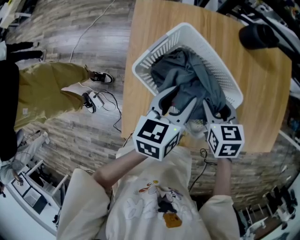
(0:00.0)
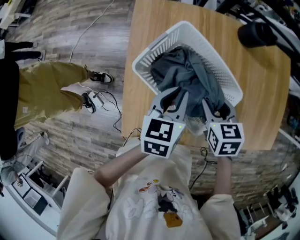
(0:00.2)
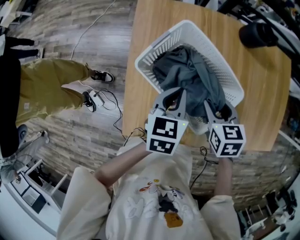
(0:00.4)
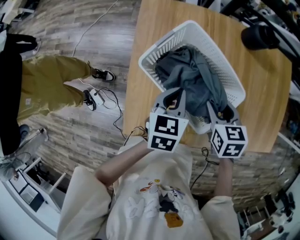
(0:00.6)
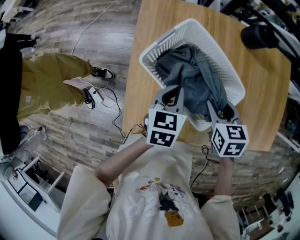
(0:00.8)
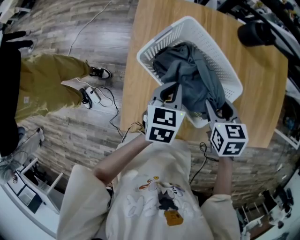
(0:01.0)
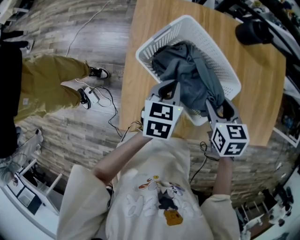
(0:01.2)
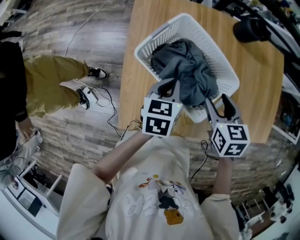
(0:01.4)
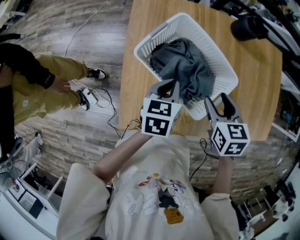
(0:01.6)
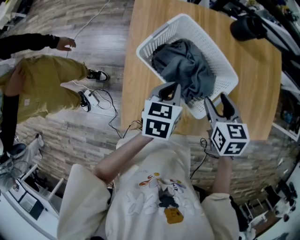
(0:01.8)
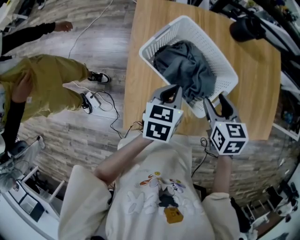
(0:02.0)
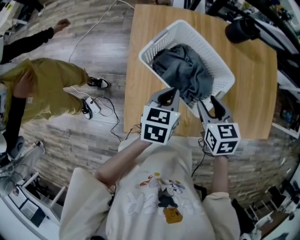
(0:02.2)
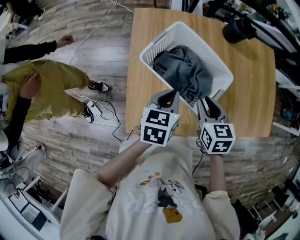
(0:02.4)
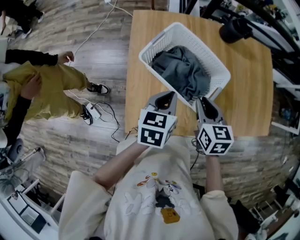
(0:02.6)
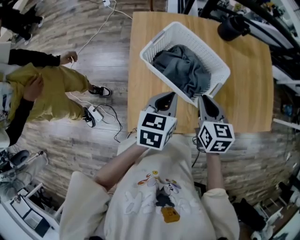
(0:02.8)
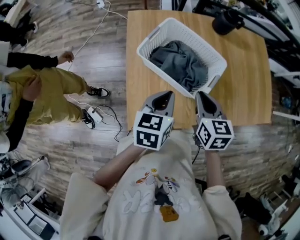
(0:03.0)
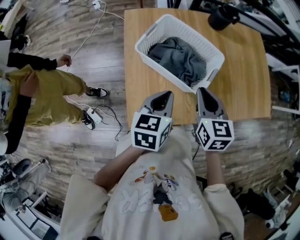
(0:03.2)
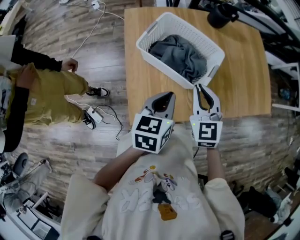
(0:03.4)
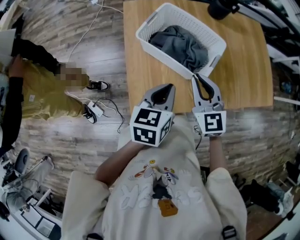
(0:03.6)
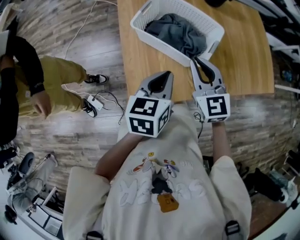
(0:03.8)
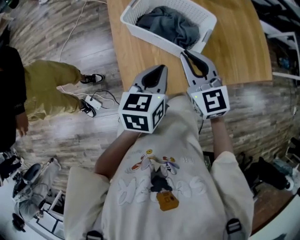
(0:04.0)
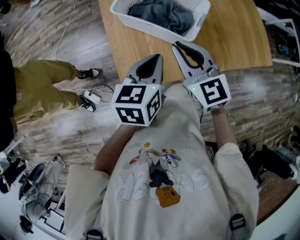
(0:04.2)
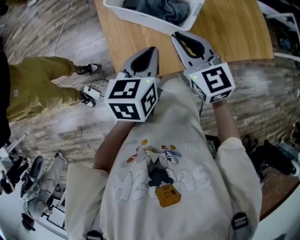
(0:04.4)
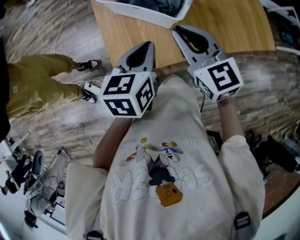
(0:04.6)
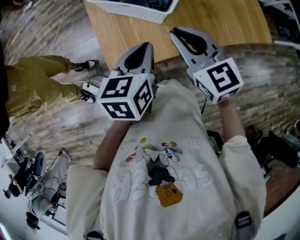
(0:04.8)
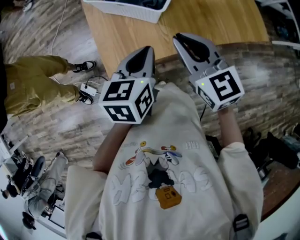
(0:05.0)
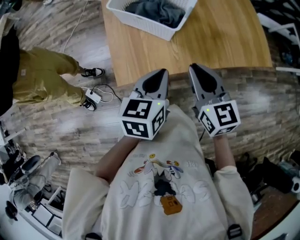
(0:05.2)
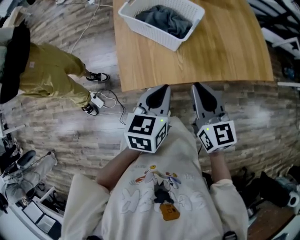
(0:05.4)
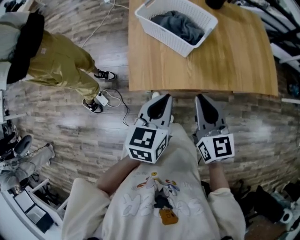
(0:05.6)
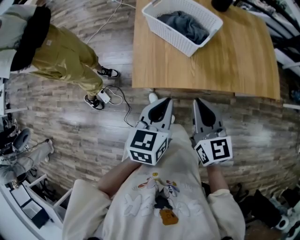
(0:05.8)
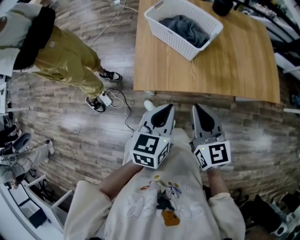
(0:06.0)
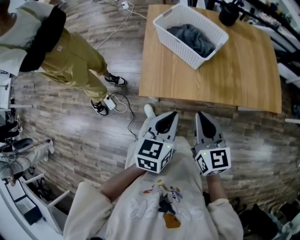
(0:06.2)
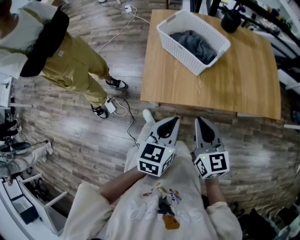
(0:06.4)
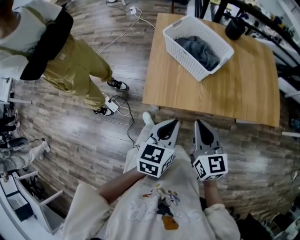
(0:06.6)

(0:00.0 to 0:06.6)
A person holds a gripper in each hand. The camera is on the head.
0:00.0 - 0:01.6: The left gripper travels downward by roughly 5 cm, and closes up. The right gripper shifts by about 5 cm.
0:01.6 - 0:03.2: The two grippers go about 15 cm backward and upward. The right gripper changes its angle by roughly 20 degrees, and closes its fingers.
0:03.2 - 0:05.0: The left gripper moves backward and to the right, about 15 cm. The right gripper goes roughly 15 cm backward, and swivels approximately 20 degrees.
0:05.0 - 0:06.6: Both grippers move backward, about 10 cm.

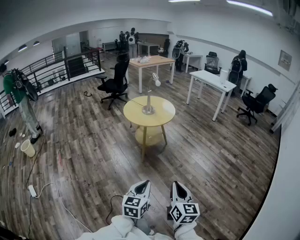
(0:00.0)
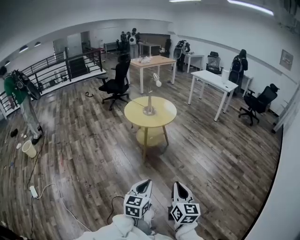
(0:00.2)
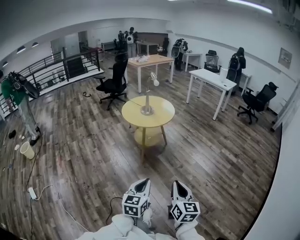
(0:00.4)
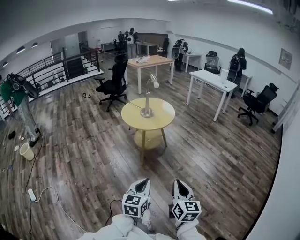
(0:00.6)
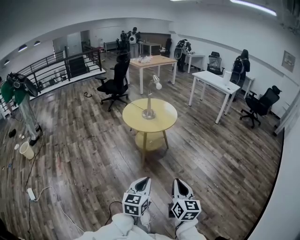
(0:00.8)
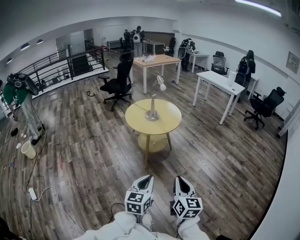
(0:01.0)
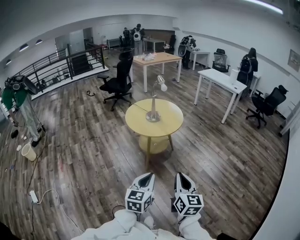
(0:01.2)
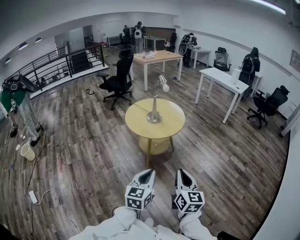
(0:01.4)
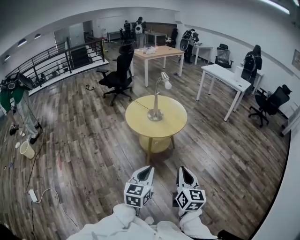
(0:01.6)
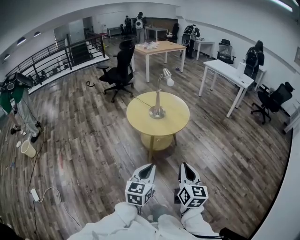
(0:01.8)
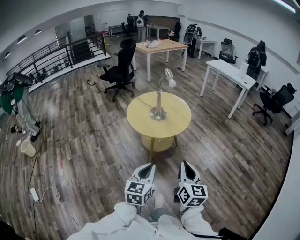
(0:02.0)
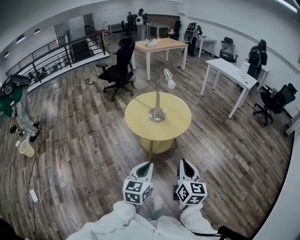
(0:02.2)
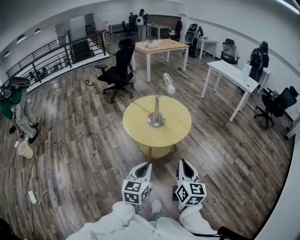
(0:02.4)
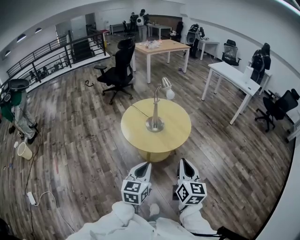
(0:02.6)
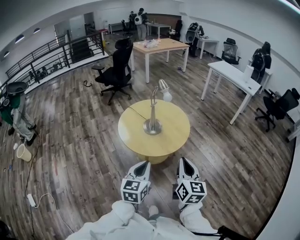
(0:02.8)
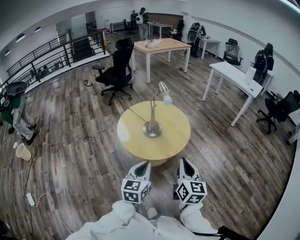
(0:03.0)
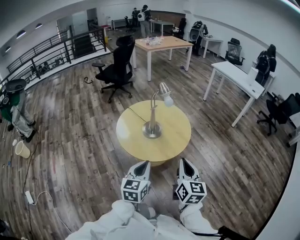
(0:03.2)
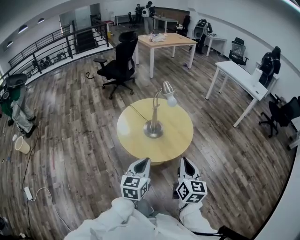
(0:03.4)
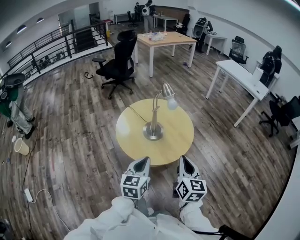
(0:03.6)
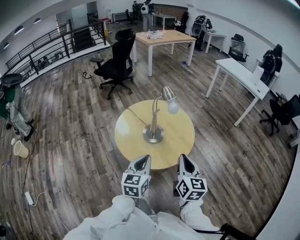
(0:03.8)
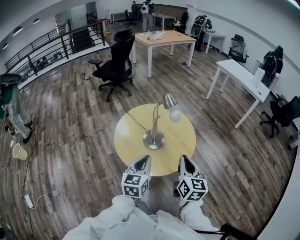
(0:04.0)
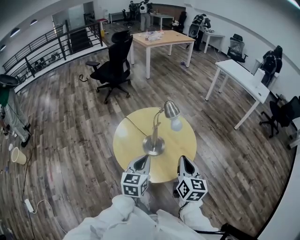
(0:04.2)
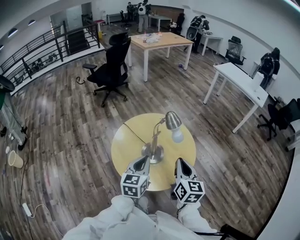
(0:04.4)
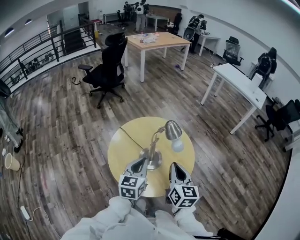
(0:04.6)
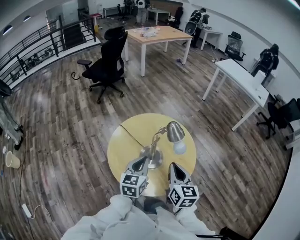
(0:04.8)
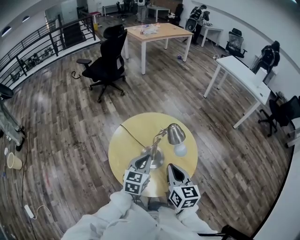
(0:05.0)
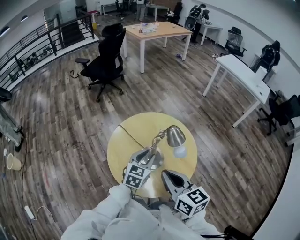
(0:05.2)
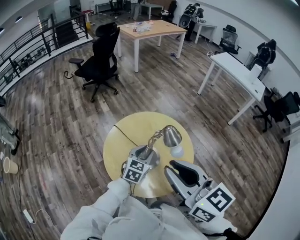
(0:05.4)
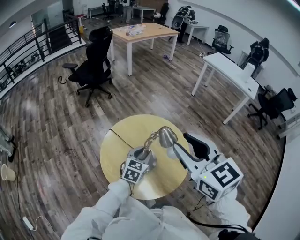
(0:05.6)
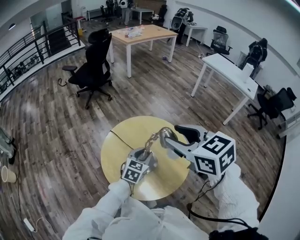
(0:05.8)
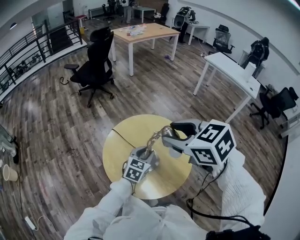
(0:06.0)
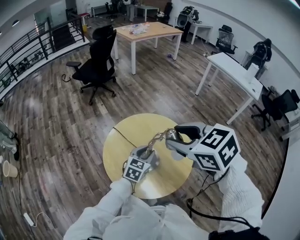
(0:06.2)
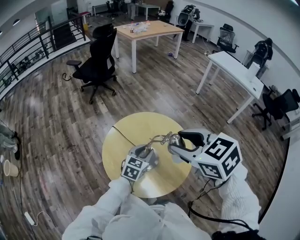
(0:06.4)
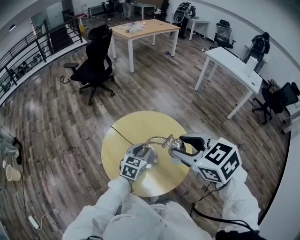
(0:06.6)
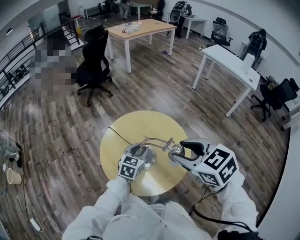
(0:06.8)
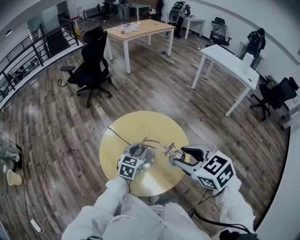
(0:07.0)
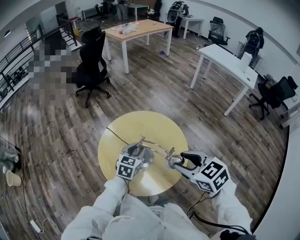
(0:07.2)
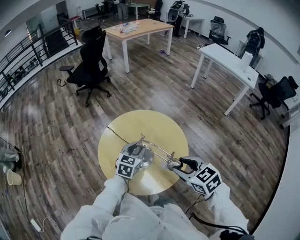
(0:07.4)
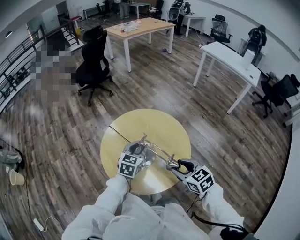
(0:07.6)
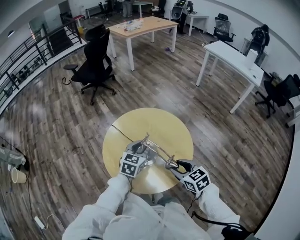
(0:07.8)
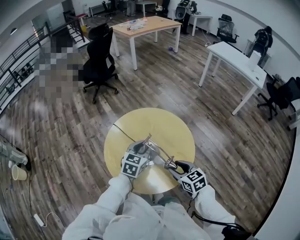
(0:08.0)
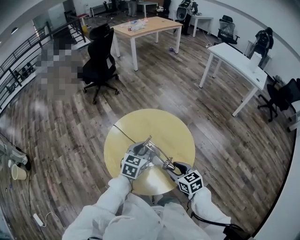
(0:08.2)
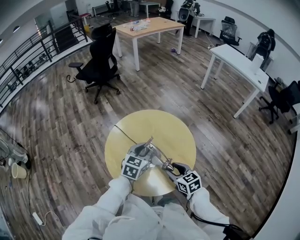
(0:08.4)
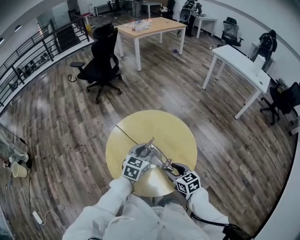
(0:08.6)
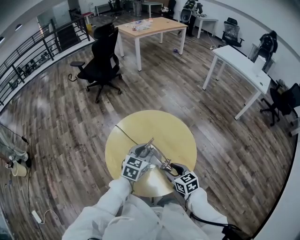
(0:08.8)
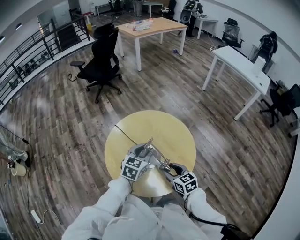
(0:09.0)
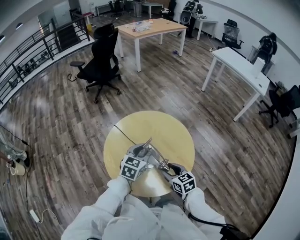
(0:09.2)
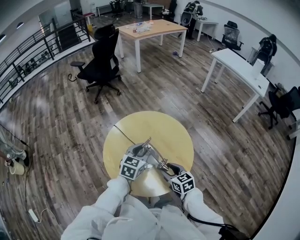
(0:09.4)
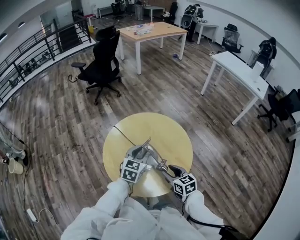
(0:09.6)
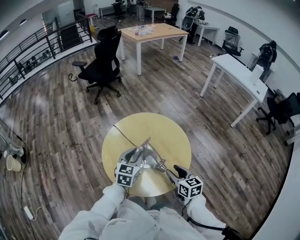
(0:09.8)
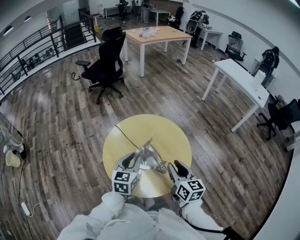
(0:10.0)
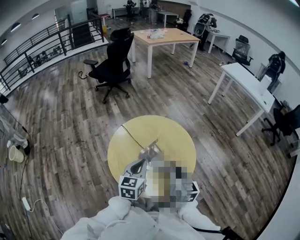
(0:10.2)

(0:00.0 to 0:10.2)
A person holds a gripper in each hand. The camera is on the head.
0:00.0 - 0:01.4: The grippers both shift forward by roughly 30 cm.
0:01.4 - 0:03.0: Both grippers move forward, approximately 35 cm.
0:03.0 - 0:04.4: The two grippers go about 25 cm forward.
0:04.4 - 0:05.8: The right gripper shifts about 20 cm upward, forward and to the left, swivels approximately 40 degrees, and opens its fingers; the left gripper shifts roughly 15 cm forward and downward, swivels about 20 degrees, and opens.
0:05.8 - 0:07.2: The right gripper travels downward, backward and to the right by approximately 20 cm.
0:07.2 - 0:08.8: The right gripper is displaced downward by approximately 20 cm.
0:08.8 - 0:10.2: The left gripper moves backward, about 10 cm, rotates some 20 degrees, and closes, while the right gripper travels upward by about 15 cm, rotates roughly 30 degrees, and closes.

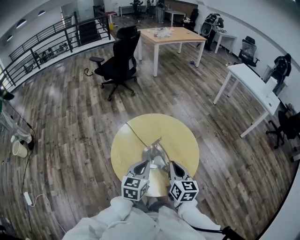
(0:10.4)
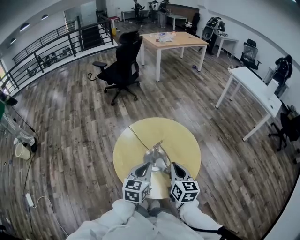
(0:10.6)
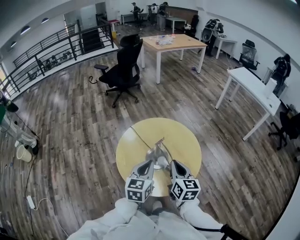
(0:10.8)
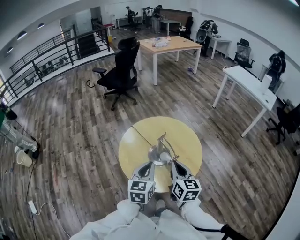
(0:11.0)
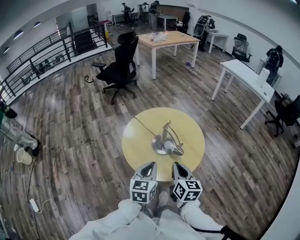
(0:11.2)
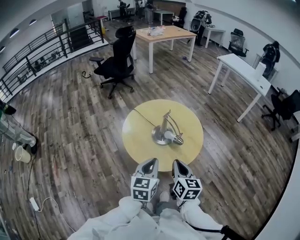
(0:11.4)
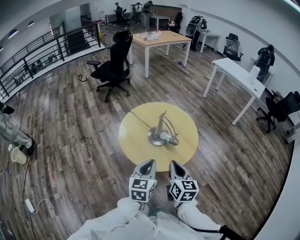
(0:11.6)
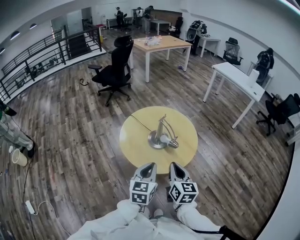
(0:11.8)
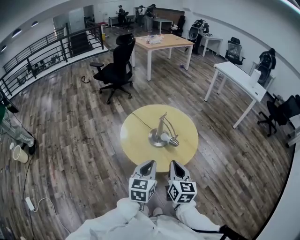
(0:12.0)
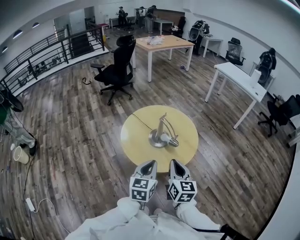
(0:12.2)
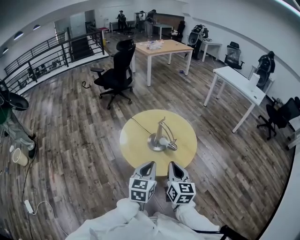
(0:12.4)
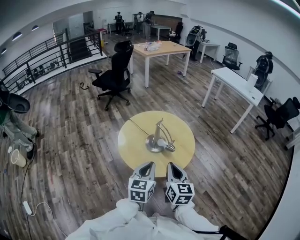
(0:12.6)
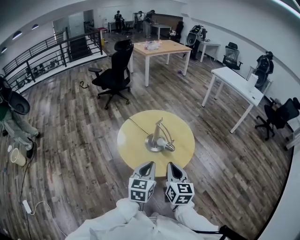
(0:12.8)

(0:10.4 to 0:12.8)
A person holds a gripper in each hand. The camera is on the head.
0:10.4 - 0:11.6: The two grippers go some 20 cm backward.
0:11.6 - 0:12.8: The grippers stay close to where they were, moving slightly.

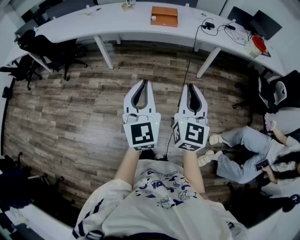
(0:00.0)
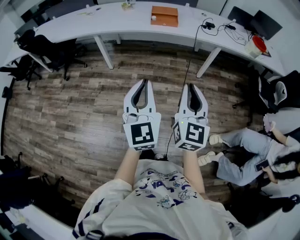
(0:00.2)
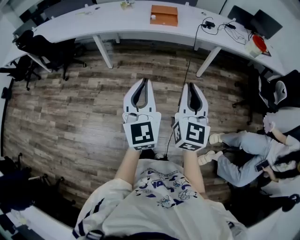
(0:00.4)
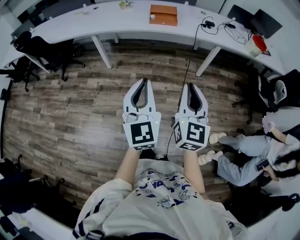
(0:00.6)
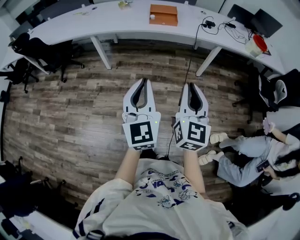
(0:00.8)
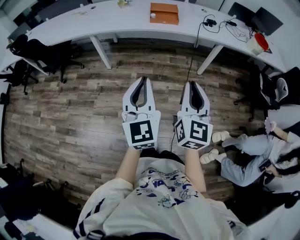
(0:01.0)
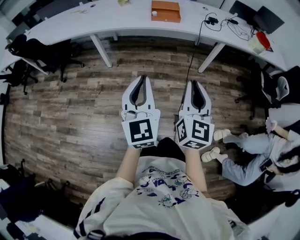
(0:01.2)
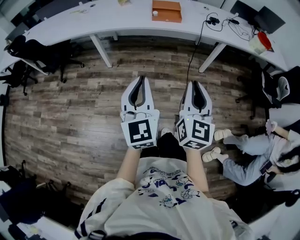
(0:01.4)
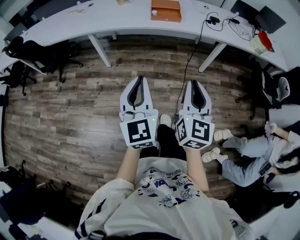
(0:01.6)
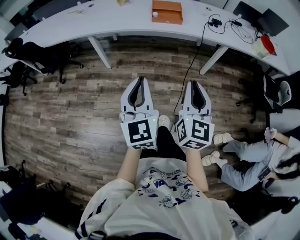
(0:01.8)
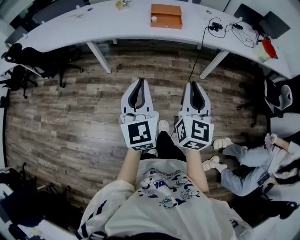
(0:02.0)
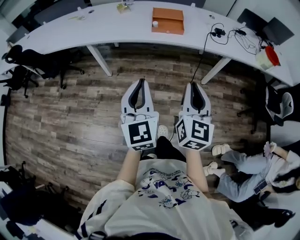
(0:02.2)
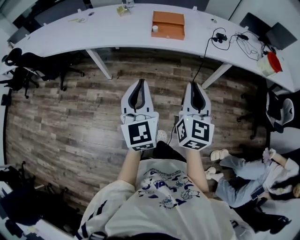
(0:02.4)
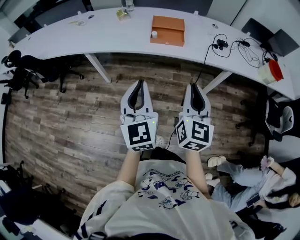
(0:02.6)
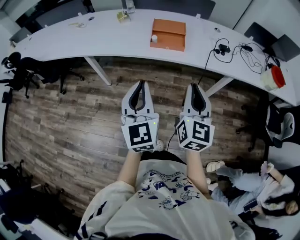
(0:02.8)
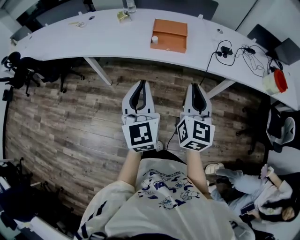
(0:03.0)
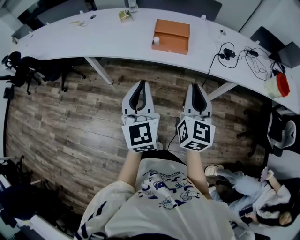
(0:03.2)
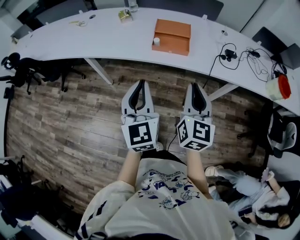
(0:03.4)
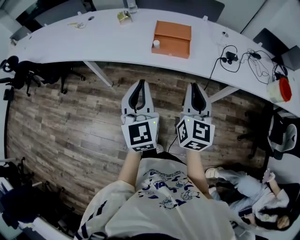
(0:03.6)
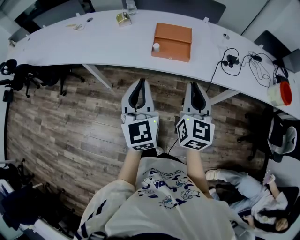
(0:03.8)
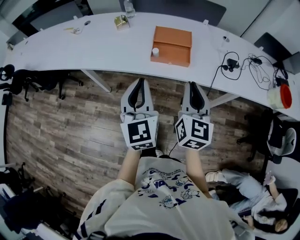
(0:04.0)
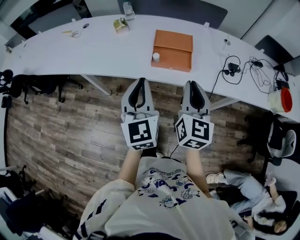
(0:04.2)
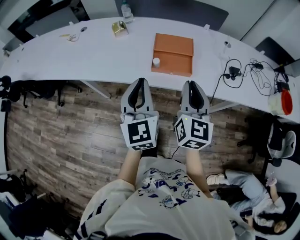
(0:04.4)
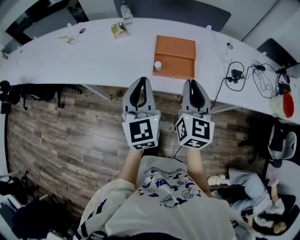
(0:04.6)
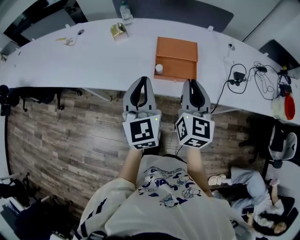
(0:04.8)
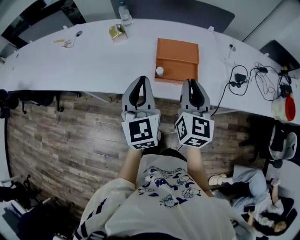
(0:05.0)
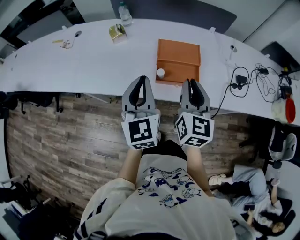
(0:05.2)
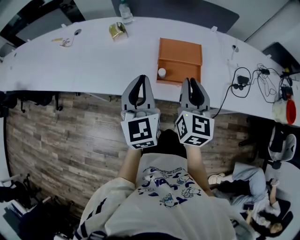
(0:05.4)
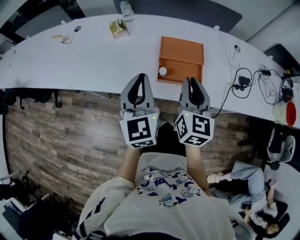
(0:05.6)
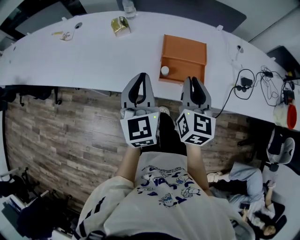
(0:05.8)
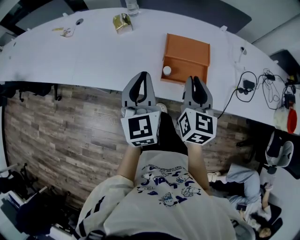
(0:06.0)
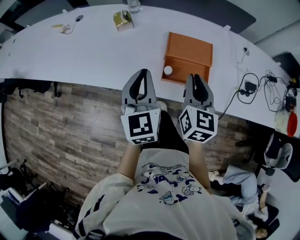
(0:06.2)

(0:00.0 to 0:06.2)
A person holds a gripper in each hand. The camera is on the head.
0:00.0 - 0:01.6: The left gripper shifts roughly 15 cm forward and to the left. The right gripper goes about 10 cm forward.
0:01.6 - 0:03.2: Both grippers move forward, approximately 30 cm.
0:03.2 - 0:04.6: Both grippers travel together forward, roughly 25 cm.
0:04.6 - 0:06.2: The grippers both shift forward and downward by roughly 15 cm.
